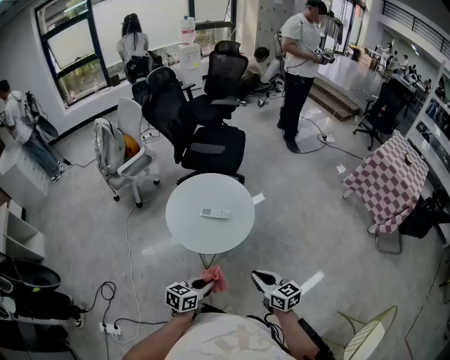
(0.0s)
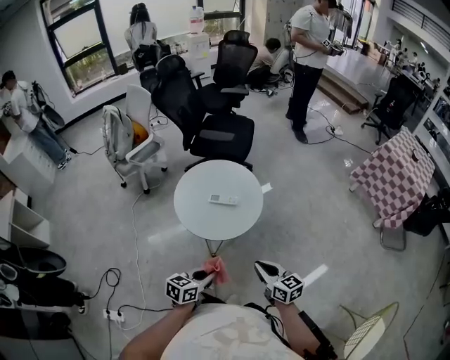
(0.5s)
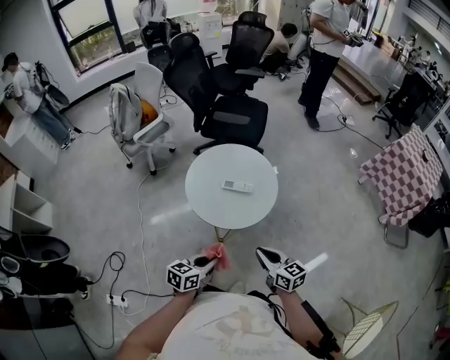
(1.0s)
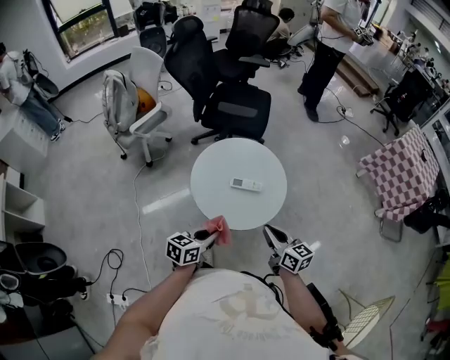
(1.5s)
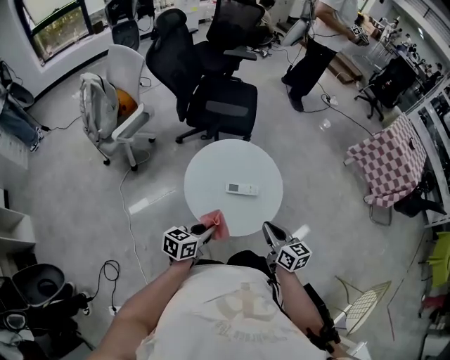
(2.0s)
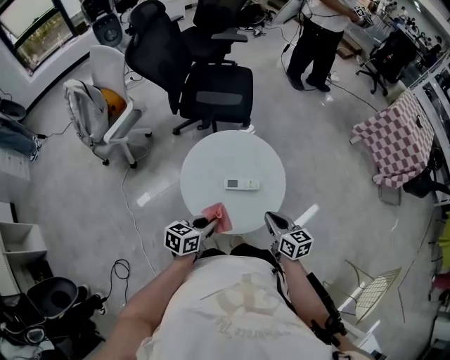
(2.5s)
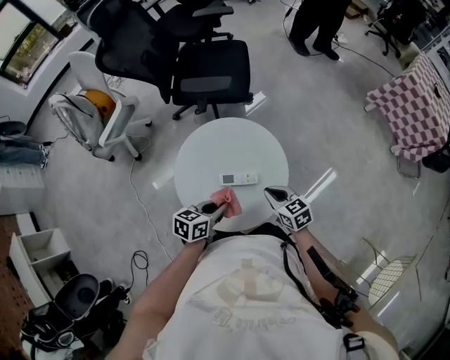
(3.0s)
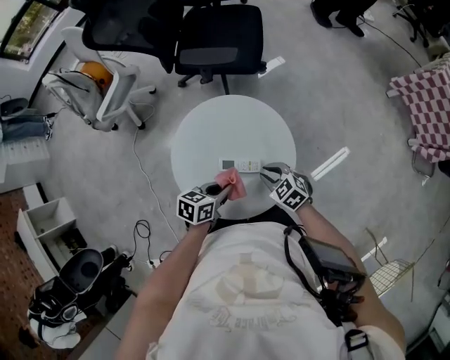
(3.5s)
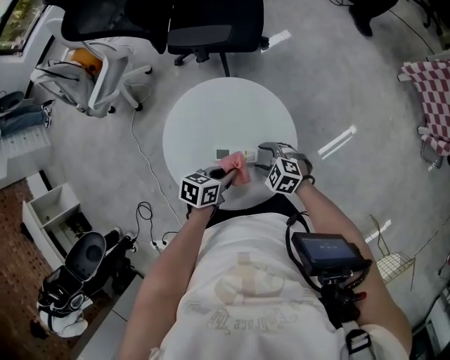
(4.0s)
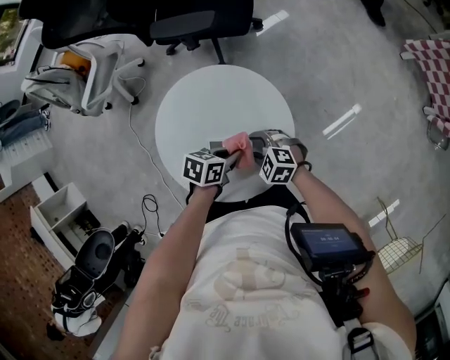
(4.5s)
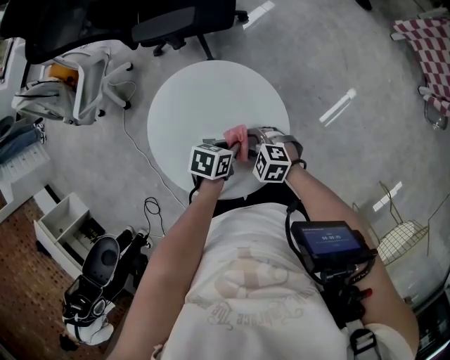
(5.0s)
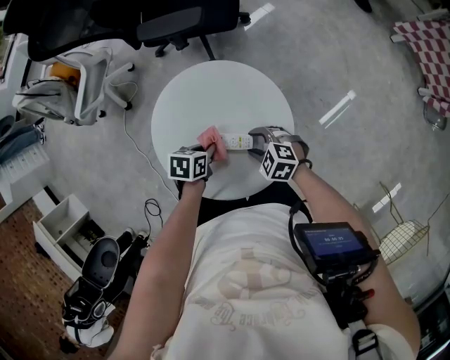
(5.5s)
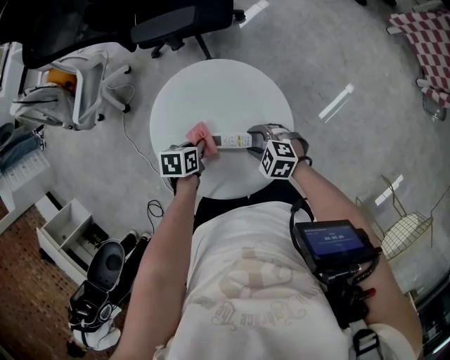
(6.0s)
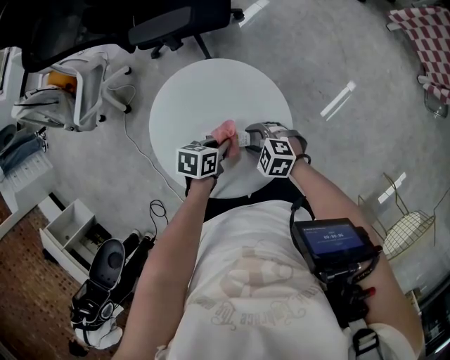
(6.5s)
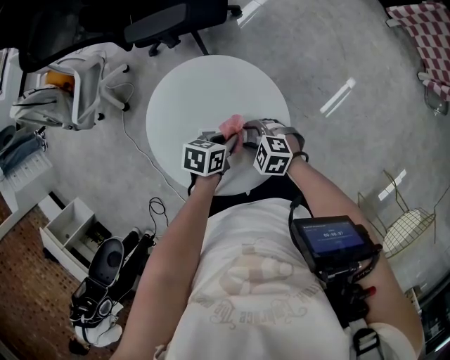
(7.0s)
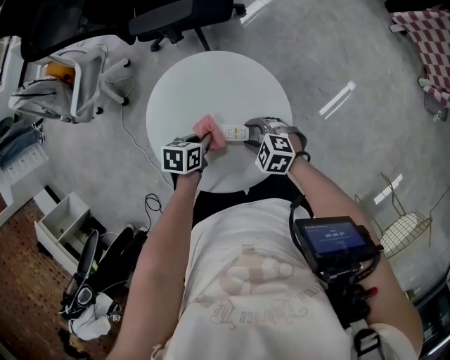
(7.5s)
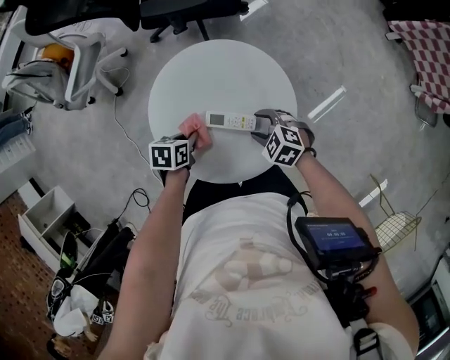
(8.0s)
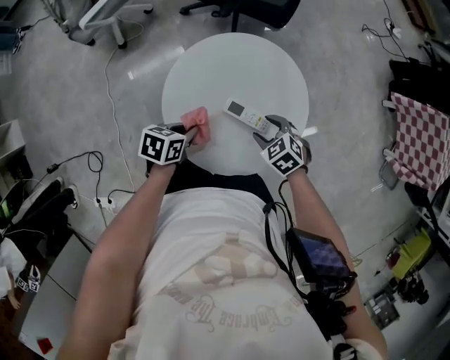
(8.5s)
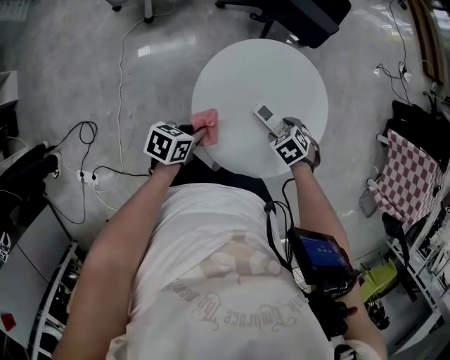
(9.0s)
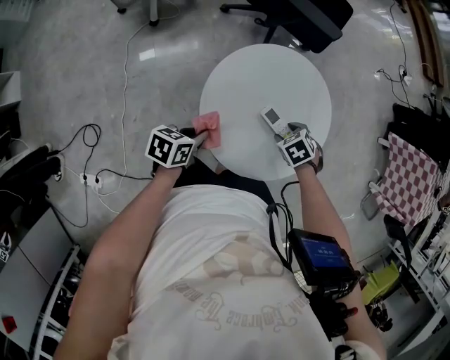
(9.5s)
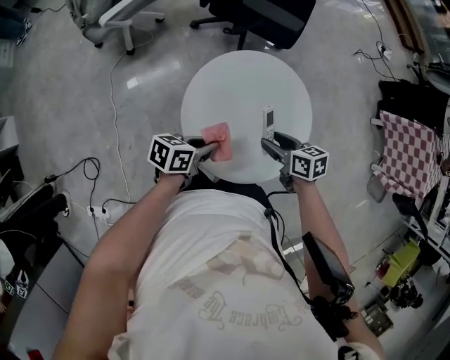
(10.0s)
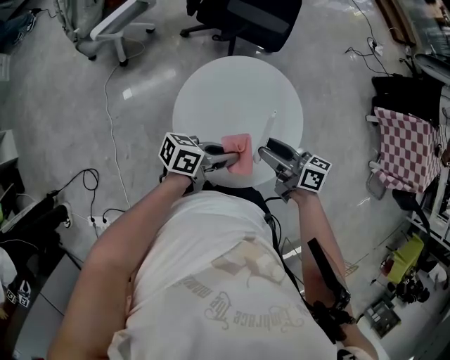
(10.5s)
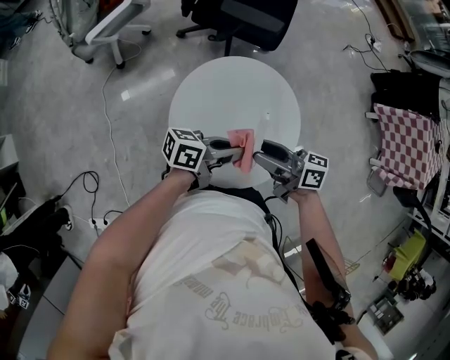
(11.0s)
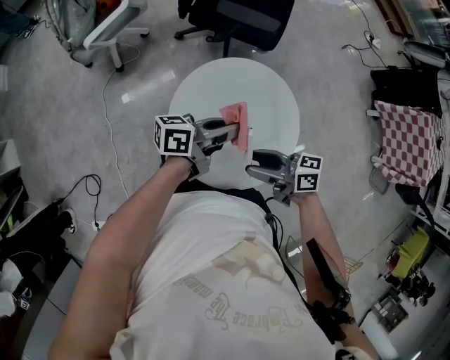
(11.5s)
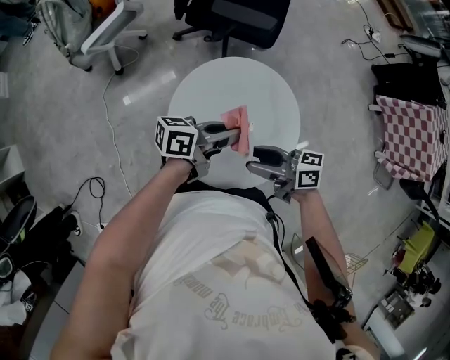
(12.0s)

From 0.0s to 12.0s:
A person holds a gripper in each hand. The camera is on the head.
From 0.0s to 2.0s: The left gripper is displaced to the left and forward by about 25 cm. Meanwhile the right gripper shifts roughly 20 cm forward and to the left.
From 2.0s to 4.0s: The right gripper travels downward by some 20 cm, angles its fingers downward, by roughly 30 degrees, and opens its fingers, while the left gripper shifts by approximately 25 cm, and rotates some 30 degrees.
From 4.0s to 6.0s: The left gripper shifts by roughly 10 cm, and swivels approximately 20 degrees.
From 8.0s to 10.0s: The two grippers go approximately 10 cm upward. The right gripper rolls clockwise, seen from behind, by approximately 40 degrees; the left gripper tilts its fingers some 40 degrees upward.
From 10.0s to 12.0s: The right gripper travels upward by roughly 10 cm, and points its fingers about 30 degrees further upward, while the left gripper ends up some 15 cm from where it was, and turns by approximately 30 degrees.

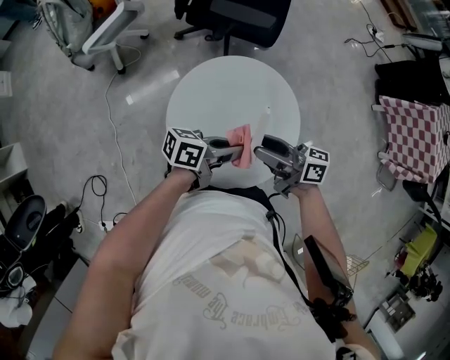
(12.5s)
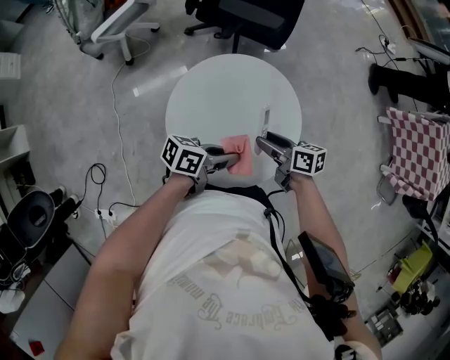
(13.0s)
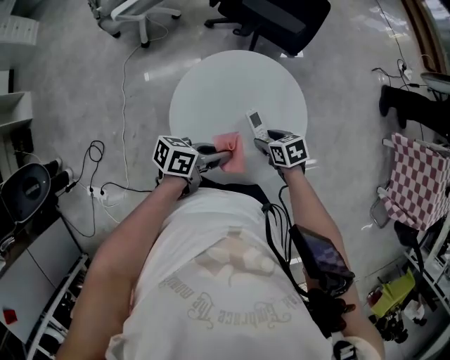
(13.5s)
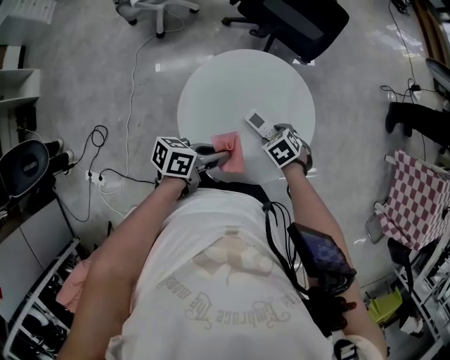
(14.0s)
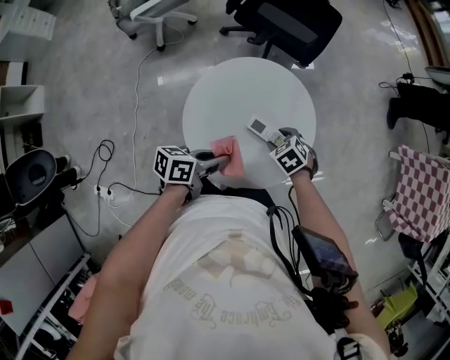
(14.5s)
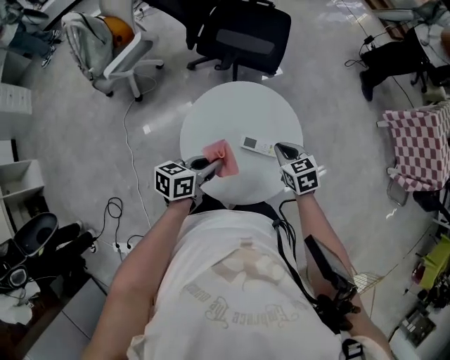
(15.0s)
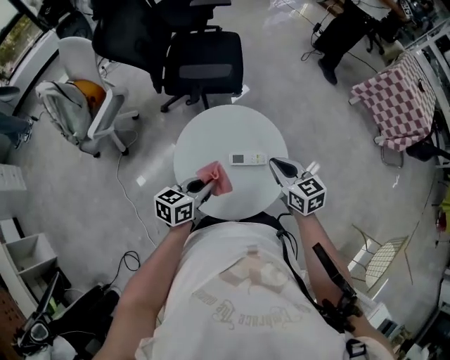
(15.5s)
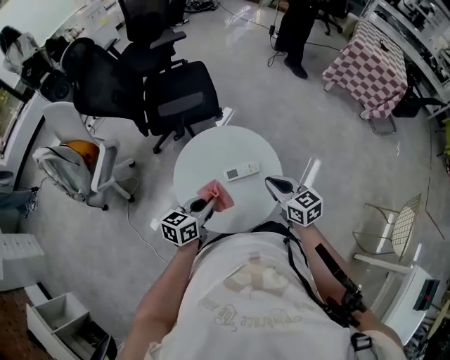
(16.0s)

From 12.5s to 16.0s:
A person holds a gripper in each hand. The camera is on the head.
From 12.5s to 14.5s: The right gripper goes approximately 20 cm downward, and tips its fingers downward by about 70 degrees. Meanwhile the left gripper ends up some 10 cm from where it was, and swivels some 30 degrees.
From 14.5s to 16.0s: The right gripper heads upward, covering roughly 20 cm, points its fingers about 50 degrees further upward, and closes up. The left gripper is displaced upward by roughly 10 cm, and turns by some 40 degrees.

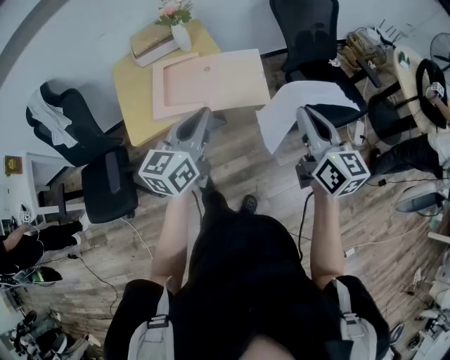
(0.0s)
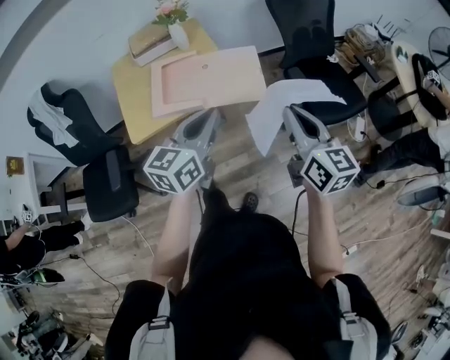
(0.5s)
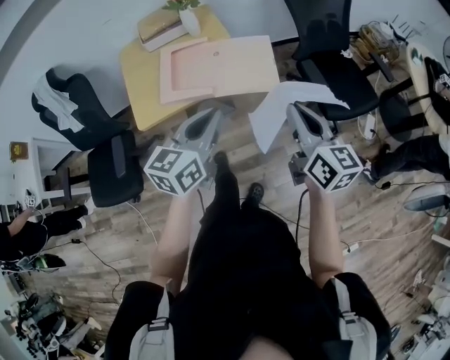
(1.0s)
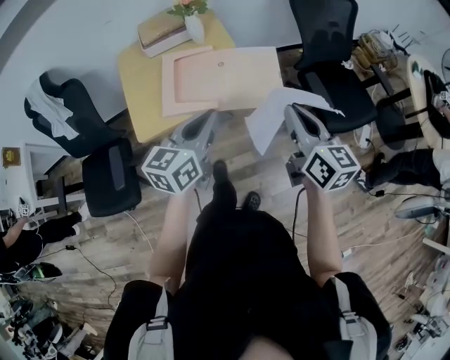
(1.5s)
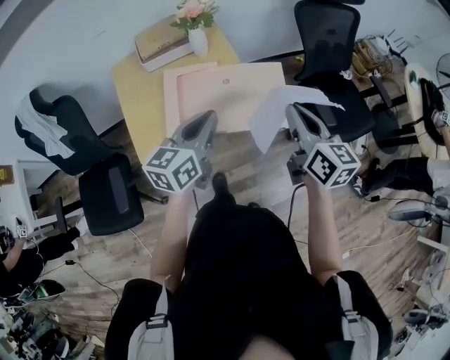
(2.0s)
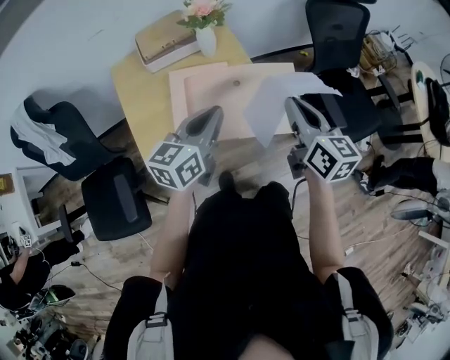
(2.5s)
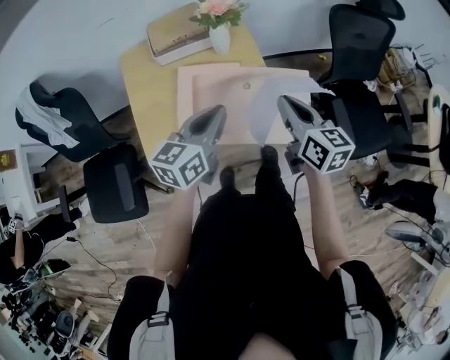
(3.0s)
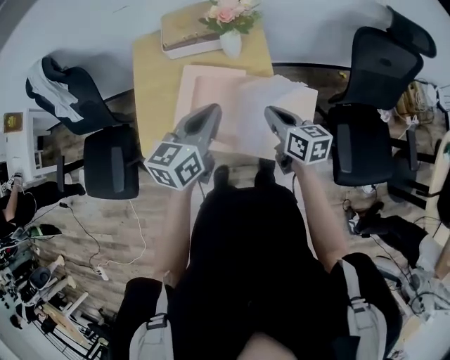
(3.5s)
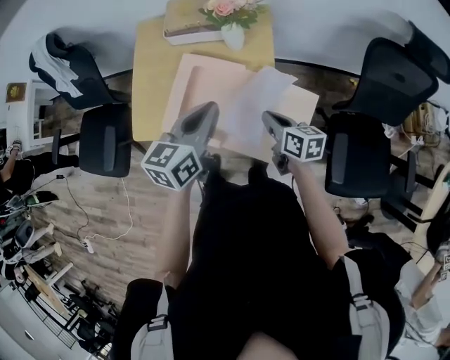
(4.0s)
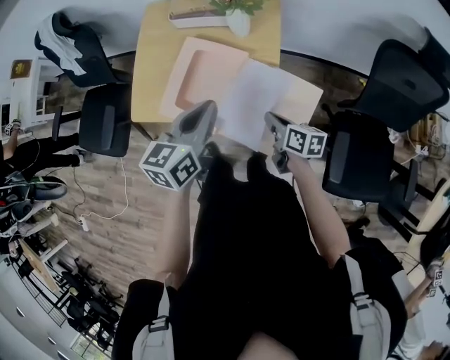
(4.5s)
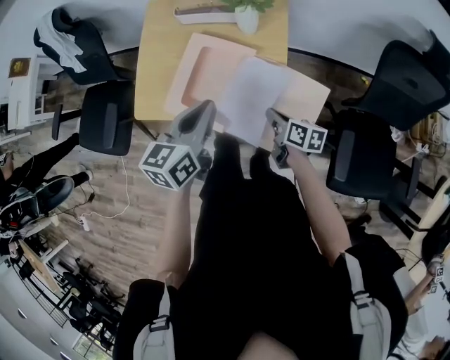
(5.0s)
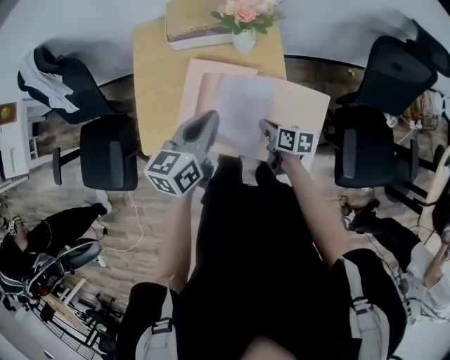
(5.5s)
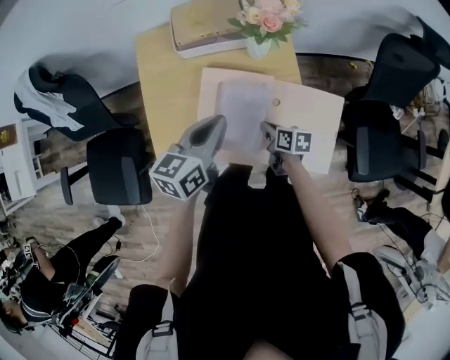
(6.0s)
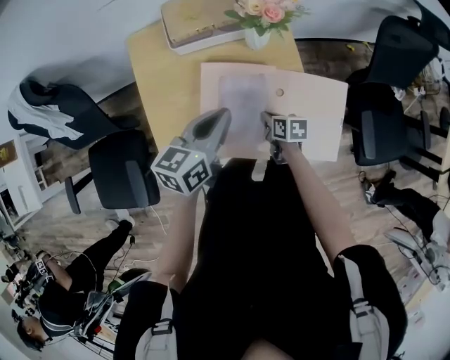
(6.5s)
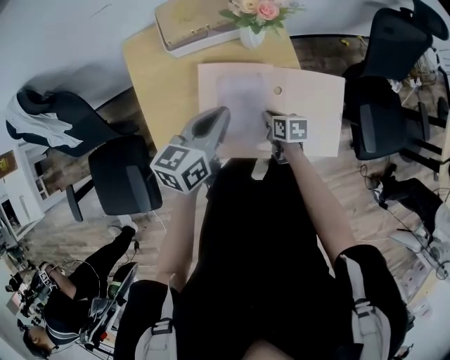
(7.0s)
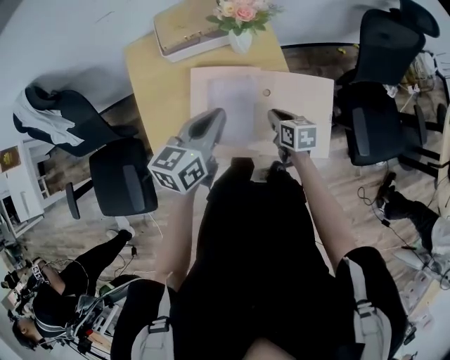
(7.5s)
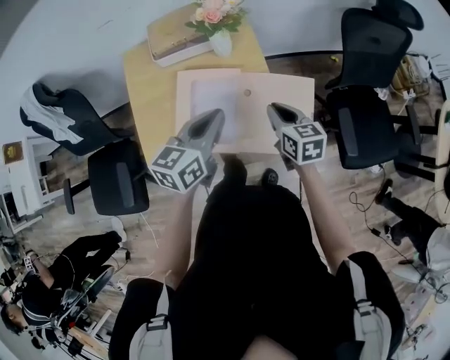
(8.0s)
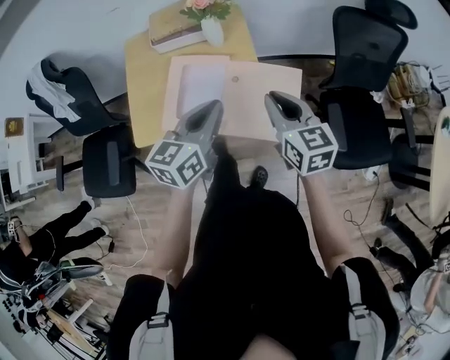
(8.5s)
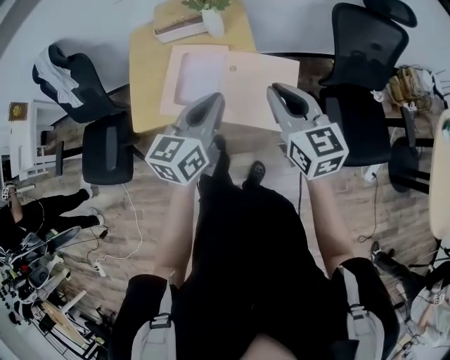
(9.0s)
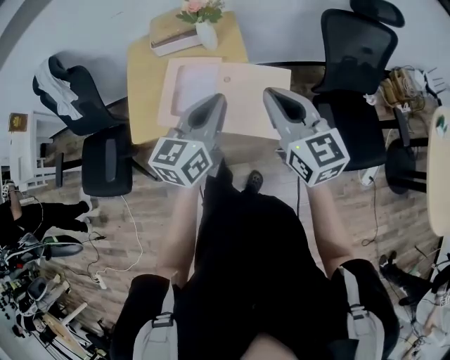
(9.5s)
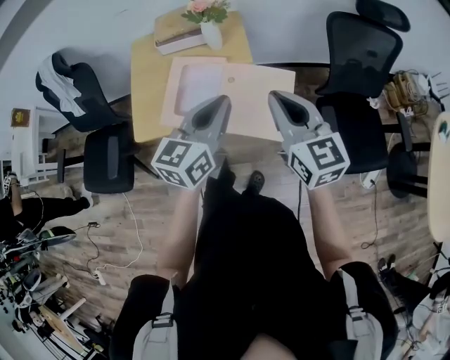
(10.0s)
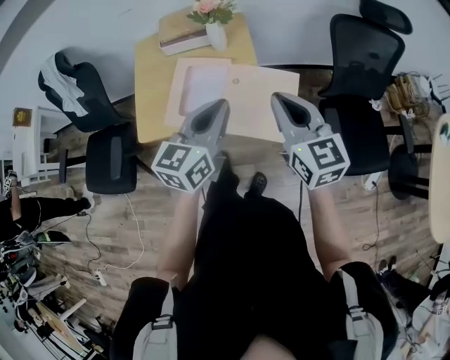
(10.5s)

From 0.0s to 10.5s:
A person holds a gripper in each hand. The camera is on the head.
From 0.0s to 2.0s: The two grippers go some 20 cm forward and to the left.
From 2.0s to 4.0s: The left gripper ends up some 20 cm from where it was, and changes its angle by some 30 degrees. Meanwhile the right gripper goes approximately 25 cm downward, and turns by some 40 degrees.
From 4.0s to 6.5s: The right gripper is displaced downward, to the left and forward by some 20 cm, and turns by approximately 30 degrees. The left gripper travels to the left, forward and downward by roughly 15 cm, and swivels some 20 degrees.
From 6.5s to 8.5s: The left gripper moves to the right, backward and upward, roughly 25 cm; the right gripper travels upward and to the right by about 35 cm, and tilts its fingers approximately 30 degrees upward.
From 8.5s to 10.5s: The right gripper moves upward and backward, roughly 10 cm. Meanwhile the left gripper ends up approximately 5 cm from where it was.
